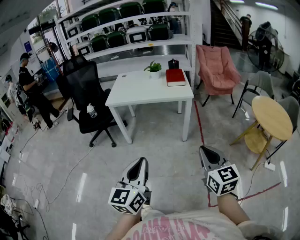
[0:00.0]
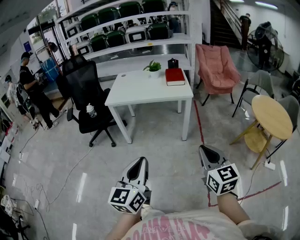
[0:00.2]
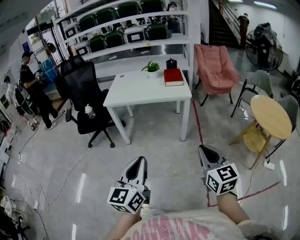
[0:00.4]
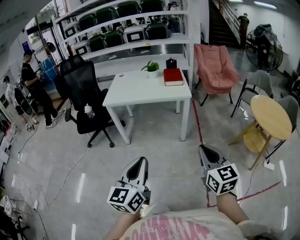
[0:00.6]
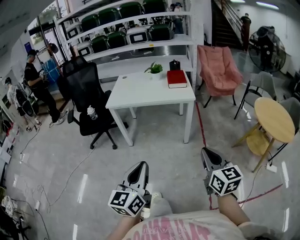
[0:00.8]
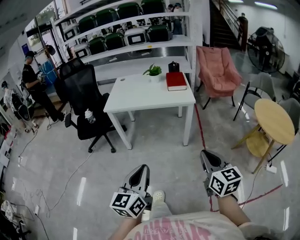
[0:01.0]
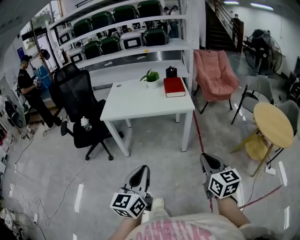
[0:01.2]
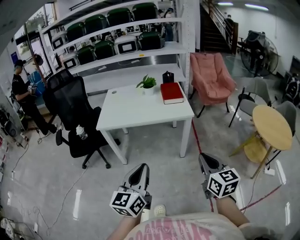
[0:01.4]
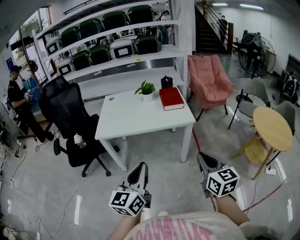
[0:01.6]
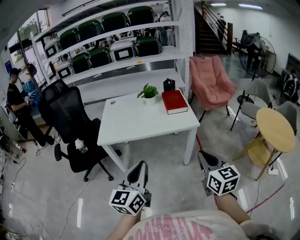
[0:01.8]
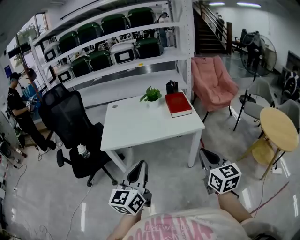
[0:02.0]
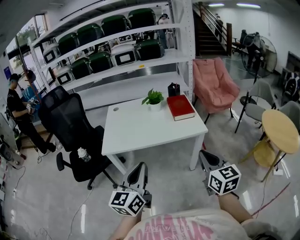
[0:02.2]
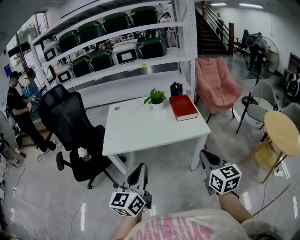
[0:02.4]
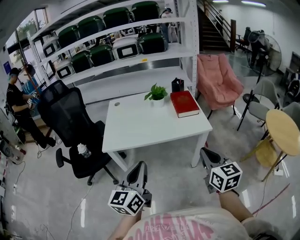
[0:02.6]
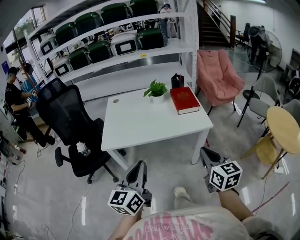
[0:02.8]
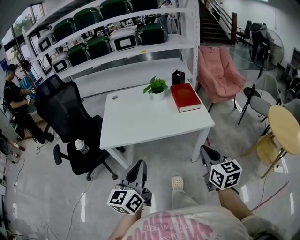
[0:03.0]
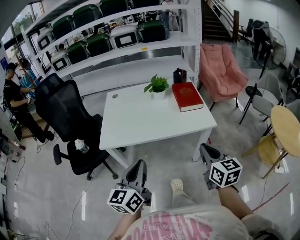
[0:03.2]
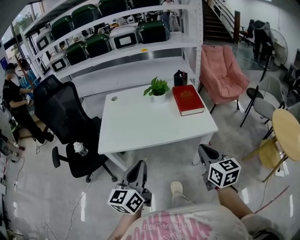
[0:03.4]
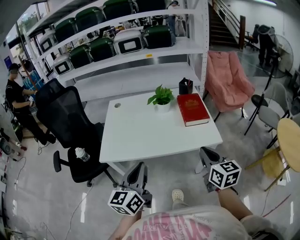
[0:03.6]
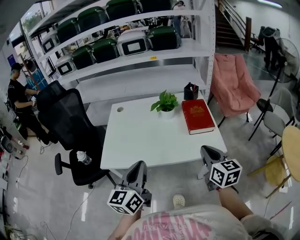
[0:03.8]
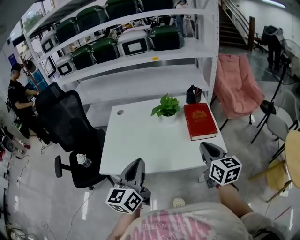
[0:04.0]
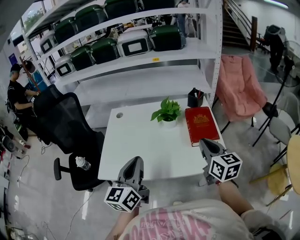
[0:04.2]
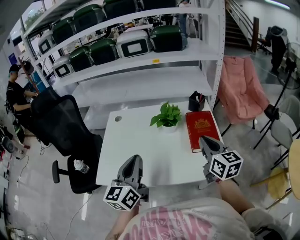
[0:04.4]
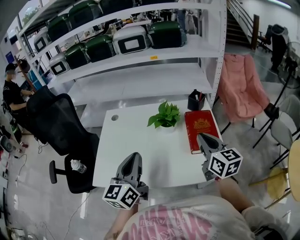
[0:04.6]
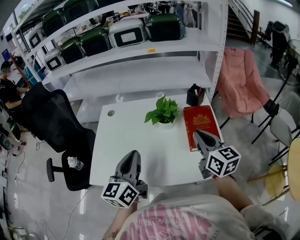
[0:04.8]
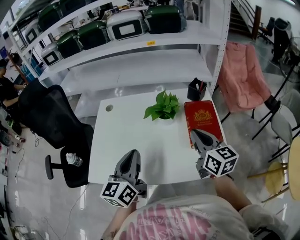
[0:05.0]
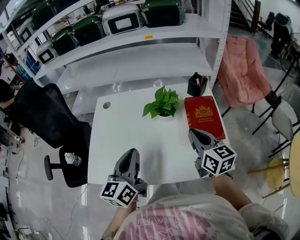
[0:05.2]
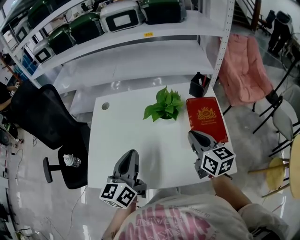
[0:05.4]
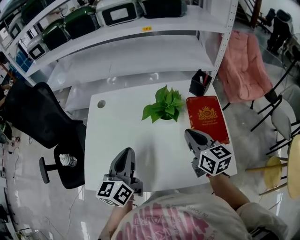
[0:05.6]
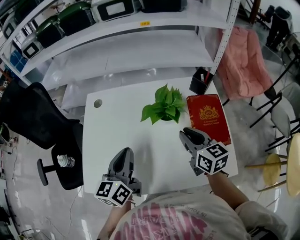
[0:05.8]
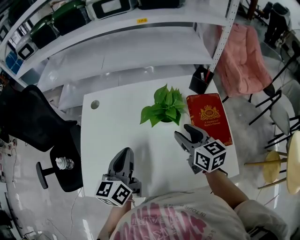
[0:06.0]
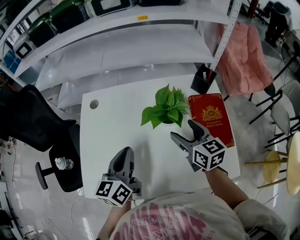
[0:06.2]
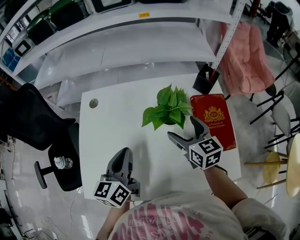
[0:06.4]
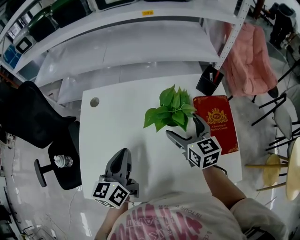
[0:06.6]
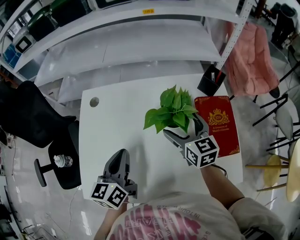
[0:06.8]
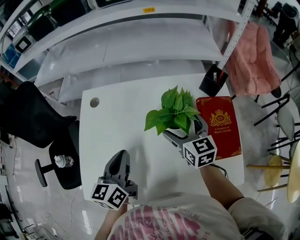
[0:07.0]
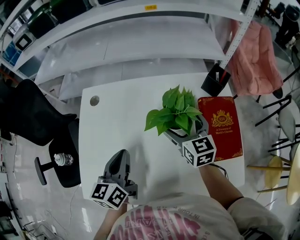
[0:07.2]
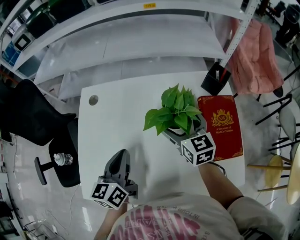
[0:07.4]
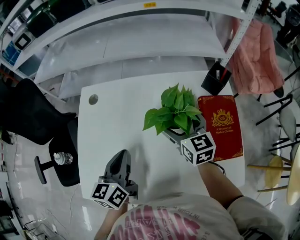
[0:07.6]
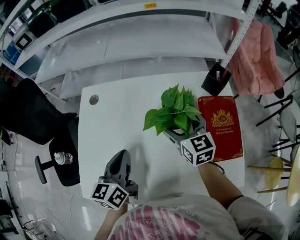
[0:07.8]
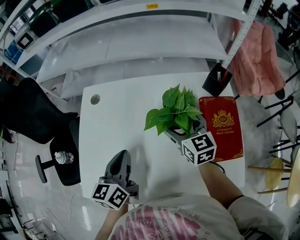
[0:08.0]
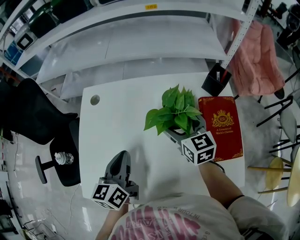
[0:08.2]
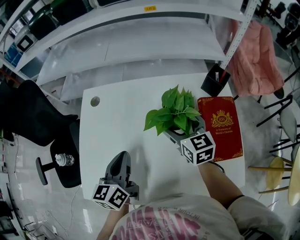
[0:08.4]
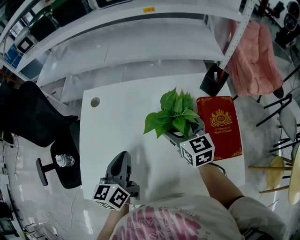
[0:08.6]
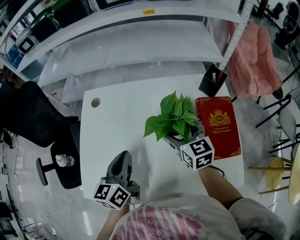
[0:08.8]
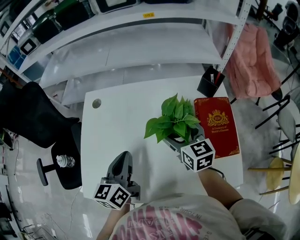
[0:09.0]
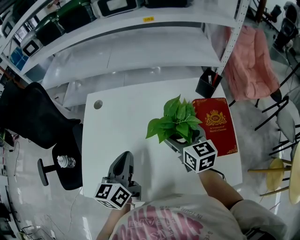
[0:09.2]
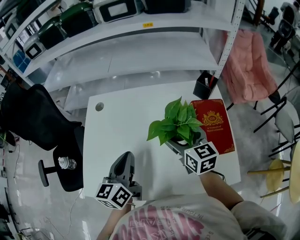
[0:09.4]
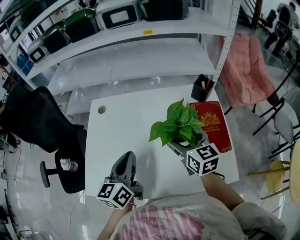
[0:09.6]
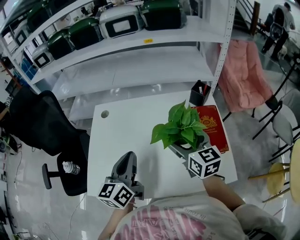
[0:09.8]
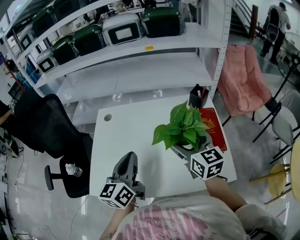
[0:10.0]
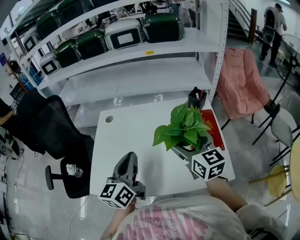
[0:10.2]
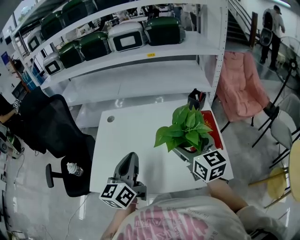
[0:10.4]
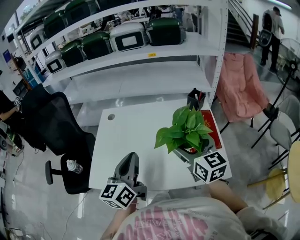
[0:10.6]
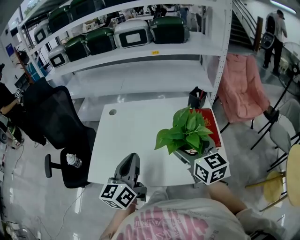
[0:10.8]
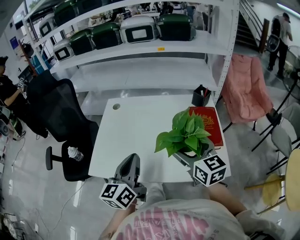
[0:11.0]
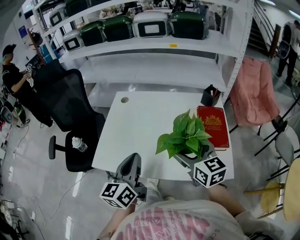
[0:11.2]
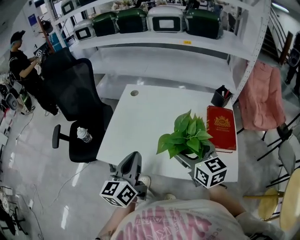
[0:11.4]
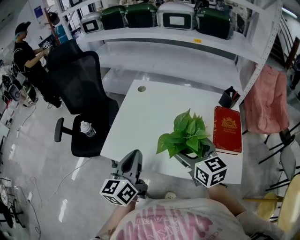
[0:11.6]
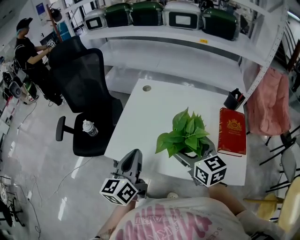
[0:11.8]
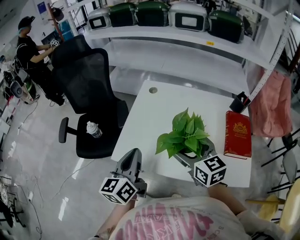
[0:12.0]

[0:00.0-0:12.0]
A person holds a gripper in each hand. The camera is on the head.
0:00.0 to 0:01.6: The grippers both shift forward by roughly 25 cm.
0:01.6 to 0:03.0: Both grippers travel together forward and to the left, about 20 cm.
0:03.0 to 0:04.4: Both grippers move forward, some 35 cm.
0:04.4 to 0:06.0: Both grippers move forward and downward, roughly 25 cm.
0:06.0 to 0:07.6: The left gripper goes about 5 cm downward; the right gripper goes some 10 cm forward, and opens its fingers.
0:07.6 to 0:09.0: The grippers stay close to where they were, moving slightly.
0:09.0 to 0:10.4: Both grippers travel together upward and backward, approximately 20 cm.
0:10.4 to 0:12.0: The grippers both shift to the left by some 20 cm. The right gripper turns by approximately 20 degrees.

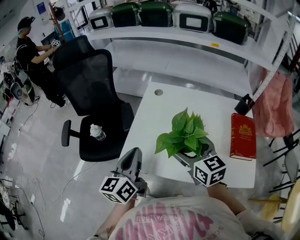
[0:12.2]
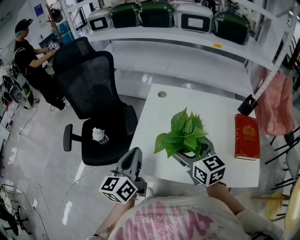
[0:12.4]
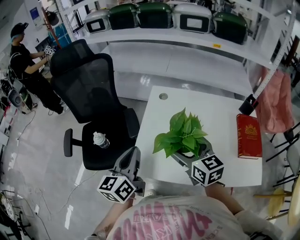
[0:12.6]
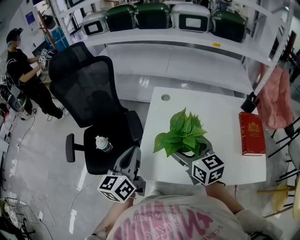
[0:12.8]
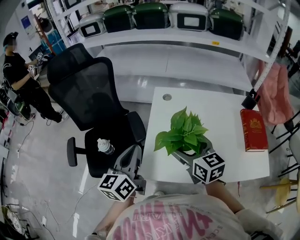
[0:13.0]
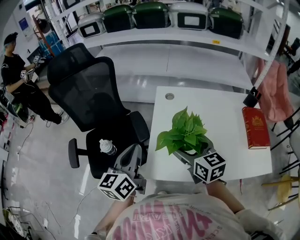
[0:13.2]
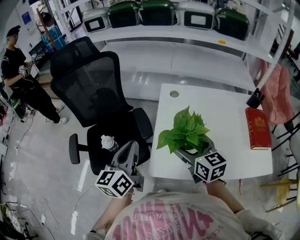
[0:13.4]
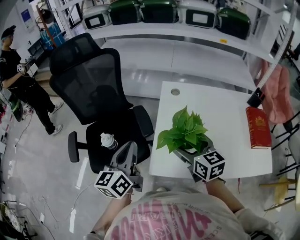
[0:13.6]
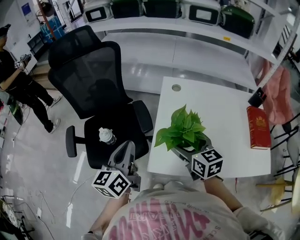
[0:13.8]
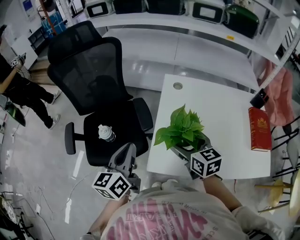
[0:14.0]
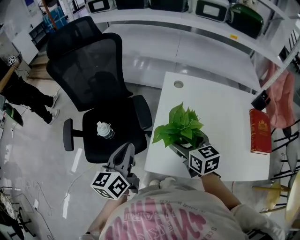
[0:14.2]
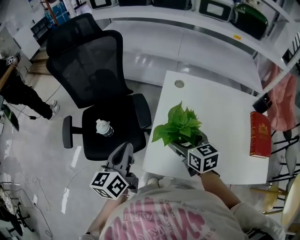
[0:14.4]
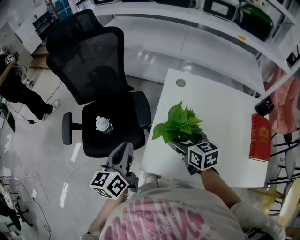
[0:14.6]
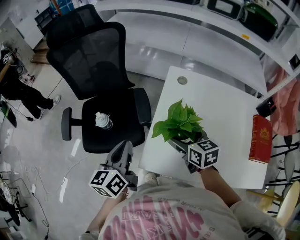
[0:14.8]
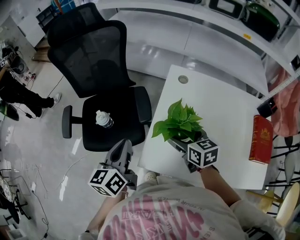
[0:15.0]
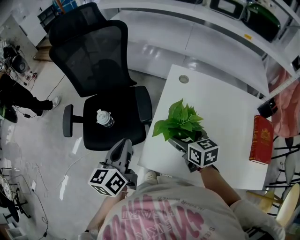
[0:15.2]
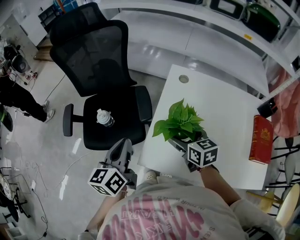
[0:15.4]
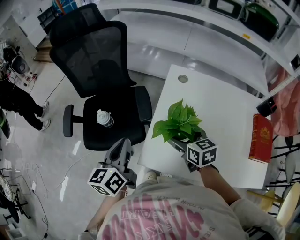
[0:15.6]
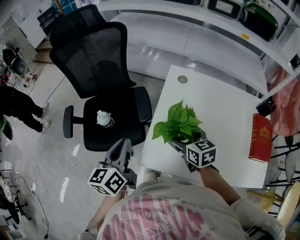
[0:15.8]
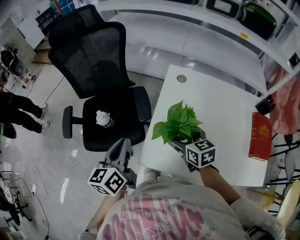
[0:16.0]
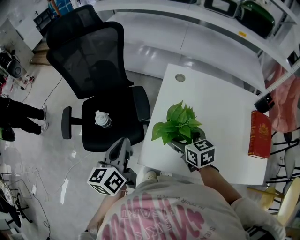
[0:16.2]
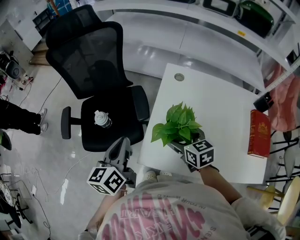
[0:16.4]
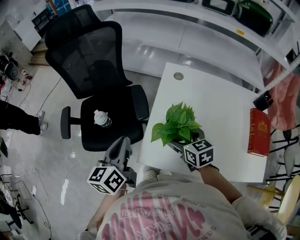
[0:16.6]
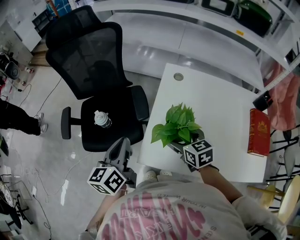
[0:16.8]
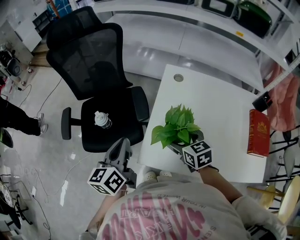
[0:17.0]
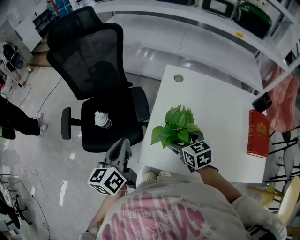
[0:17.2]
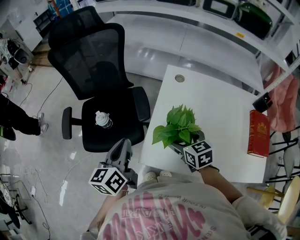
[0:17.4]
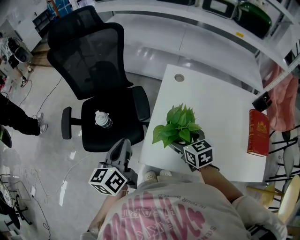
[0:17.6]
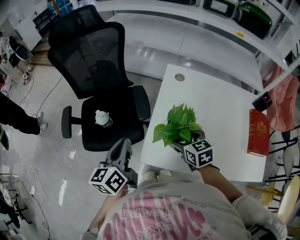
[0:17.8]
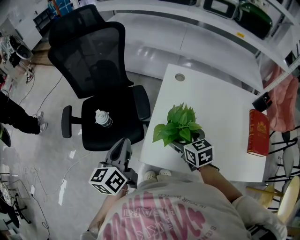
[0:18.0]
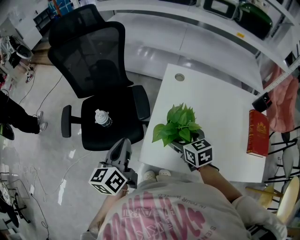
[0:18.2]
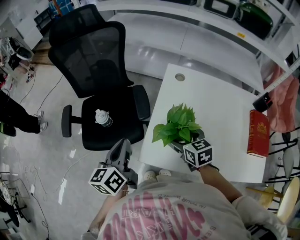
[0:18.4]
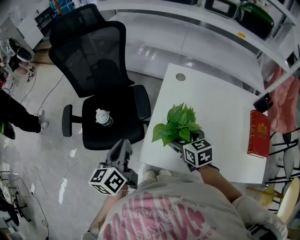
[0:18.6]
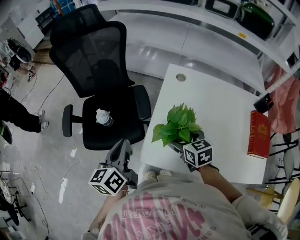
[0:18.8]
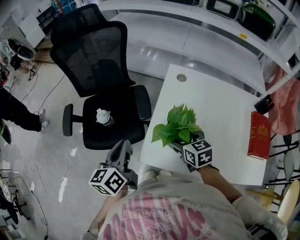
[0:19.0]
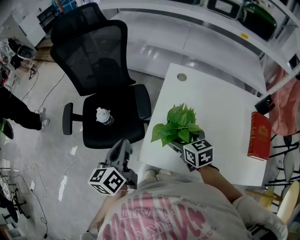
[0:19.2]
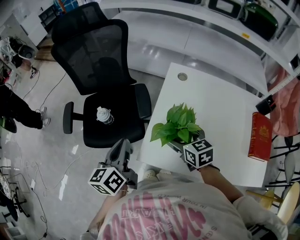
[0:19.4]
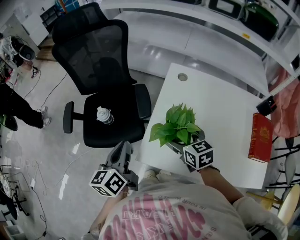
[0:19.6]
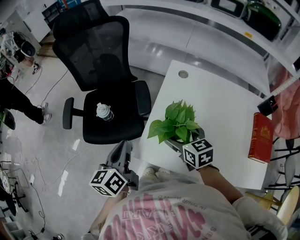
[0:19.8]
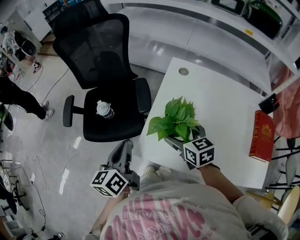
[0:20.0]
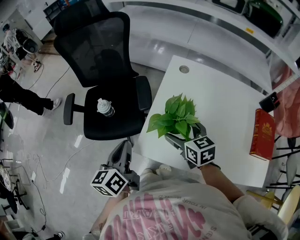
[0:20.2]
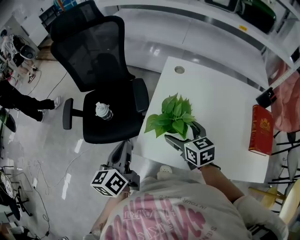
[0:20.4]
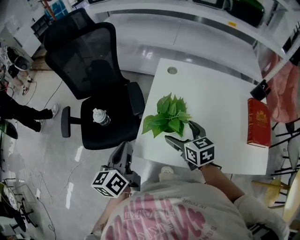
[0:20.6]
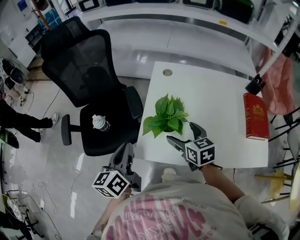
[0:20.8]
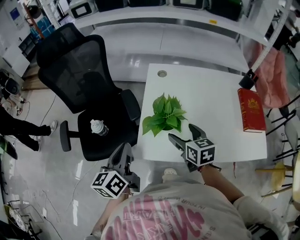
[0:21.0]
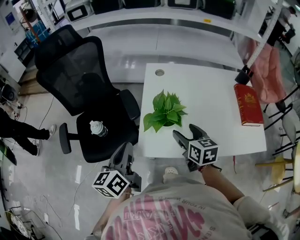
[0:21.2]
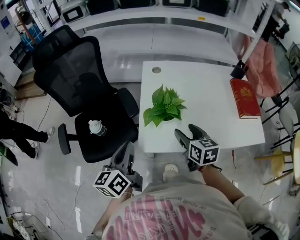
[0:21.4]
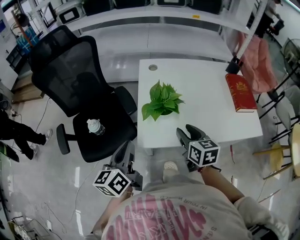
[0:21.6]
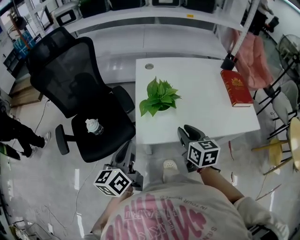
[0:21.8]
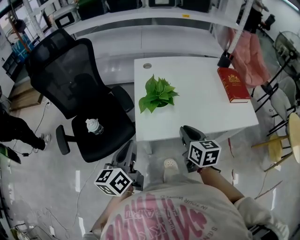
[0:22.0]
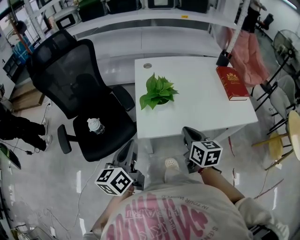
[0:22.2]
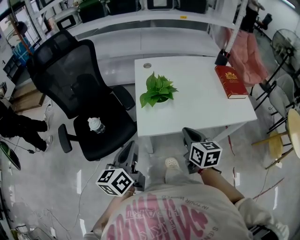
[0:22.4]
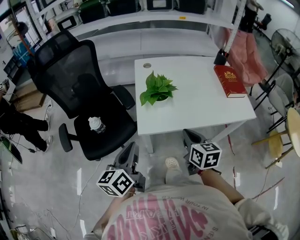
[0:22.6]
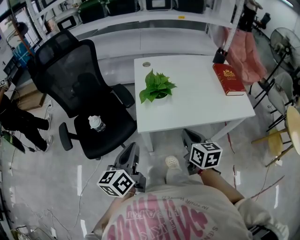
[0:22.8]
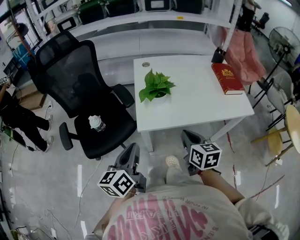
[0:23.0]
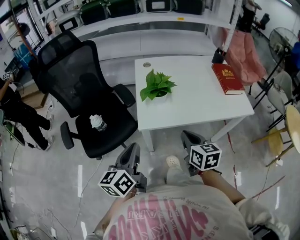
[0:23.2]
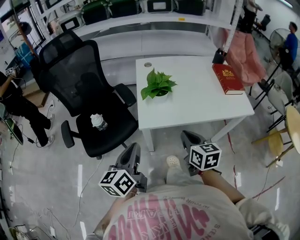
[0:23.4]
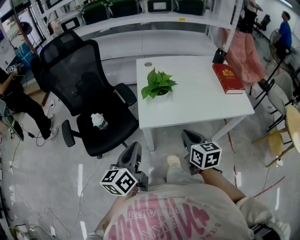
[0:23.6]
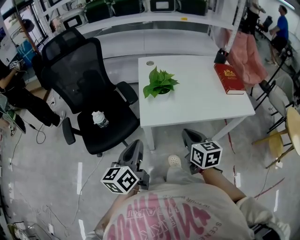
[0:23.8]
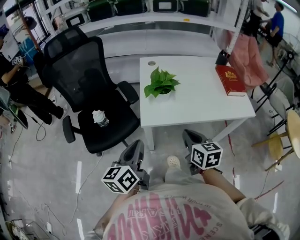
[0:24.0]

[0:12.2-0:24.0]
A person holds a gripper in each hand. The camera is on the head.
0:12.2 to 0:13.6: The left gripper travels to the left and forward by about 20 cm, while the right gripper travels to the left by approximately 15 cm.
0:13.6 to 0:15.2: The right gripper shifts approximately 10 cm downward and forward.
0:15.2 to 0:19.6: The grippers move only a little.
0:19.6 to 0:21.0: The right gripper goes approximately 5 cm backward, and changes its angle by some 20 degrees.
0:21.0 to 0:22.6: The grippers both shift backward by some 20 cm. The right gripper closes up.
0:22.6 to 0:24.0: The grippers both shift backward by some 5 cm.
